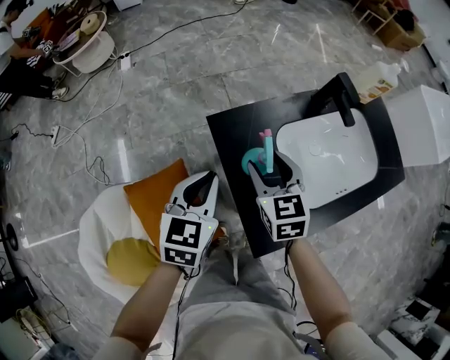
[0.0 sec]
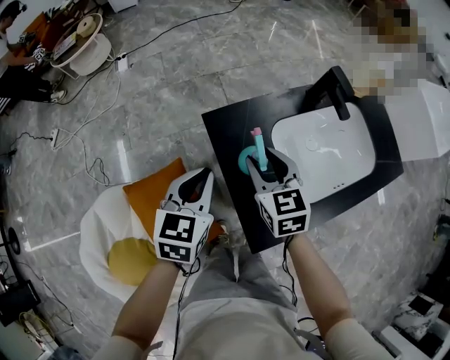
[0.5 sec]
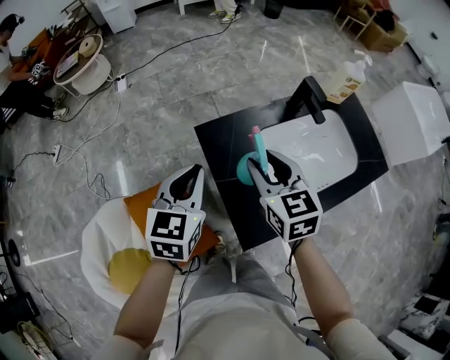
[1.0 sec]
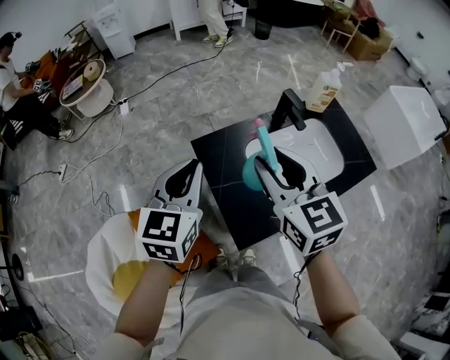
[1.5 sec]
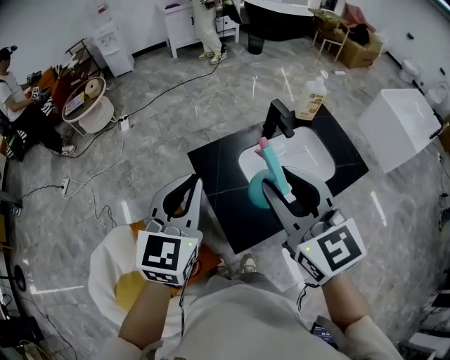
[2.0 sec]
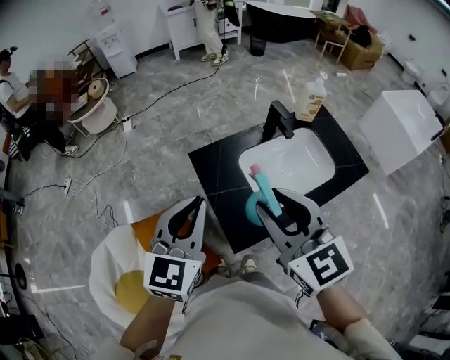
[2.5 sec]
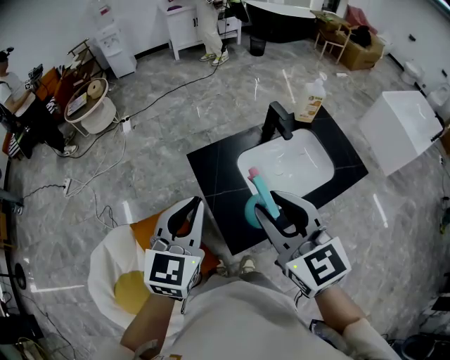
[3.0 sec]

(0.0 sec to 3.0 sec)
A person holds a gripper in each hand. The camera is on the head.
0.0 sec - 1.5 sec: The two grippers go roughly 20 cm upward. The right gripper closes.
1.5 sec - 3.0 sec: Both grippers travel together backward, approximately 10 cm.

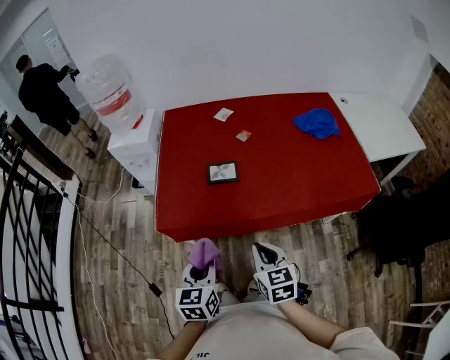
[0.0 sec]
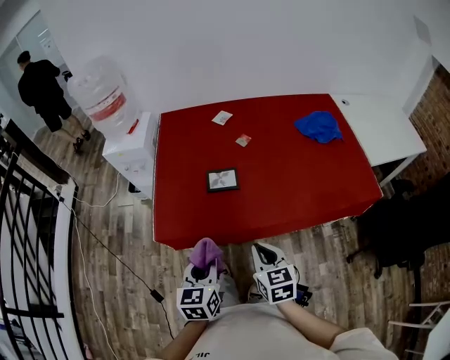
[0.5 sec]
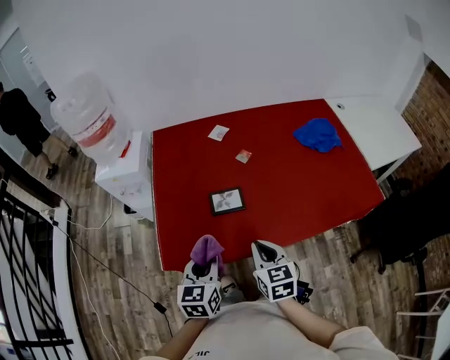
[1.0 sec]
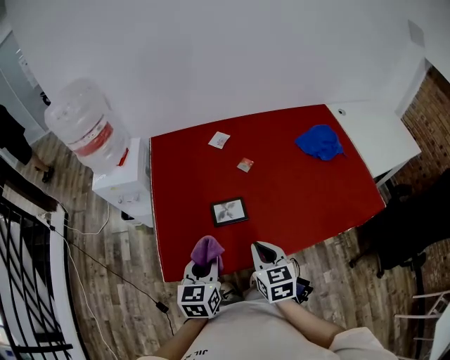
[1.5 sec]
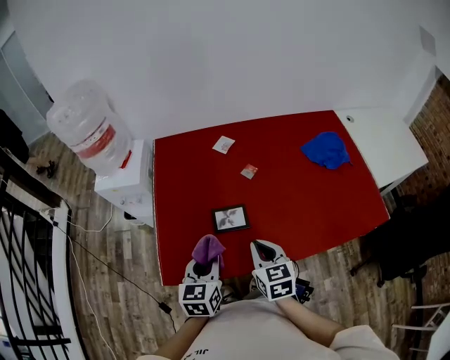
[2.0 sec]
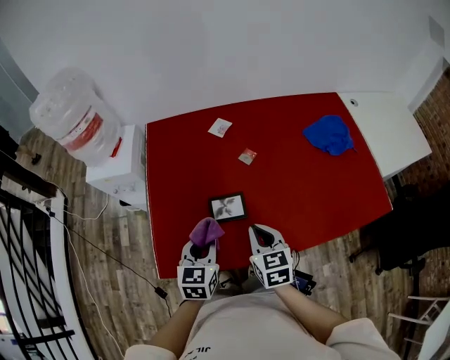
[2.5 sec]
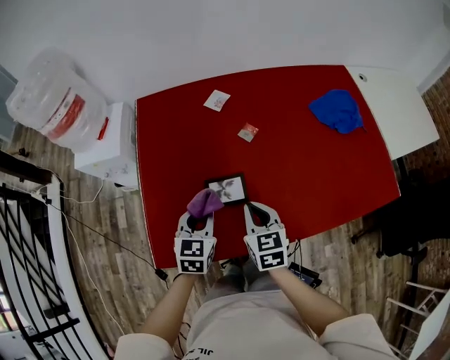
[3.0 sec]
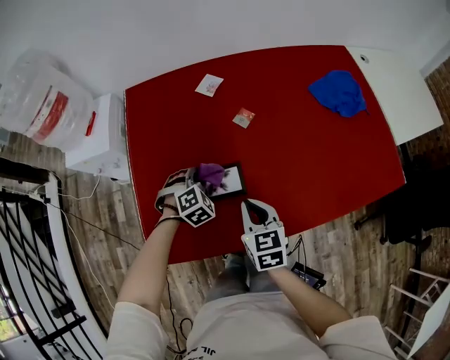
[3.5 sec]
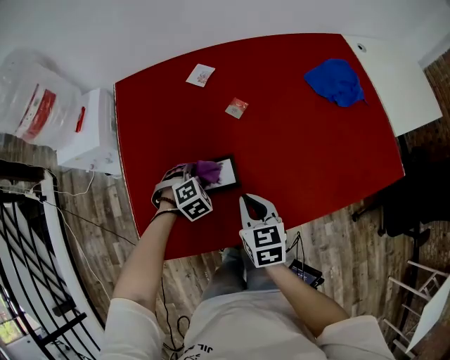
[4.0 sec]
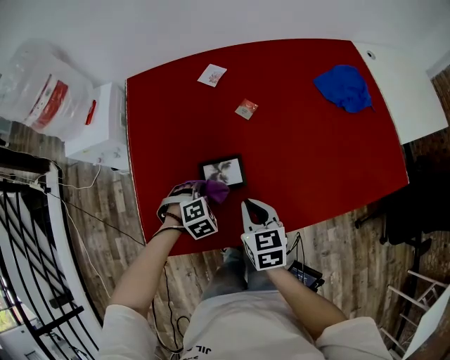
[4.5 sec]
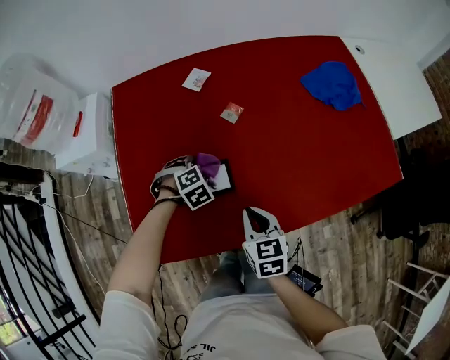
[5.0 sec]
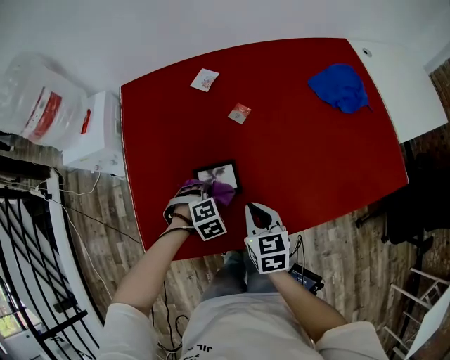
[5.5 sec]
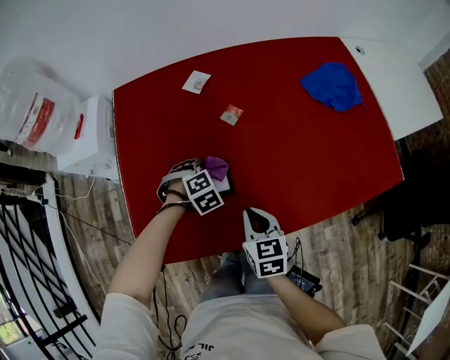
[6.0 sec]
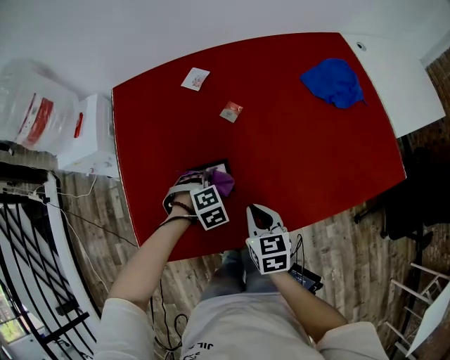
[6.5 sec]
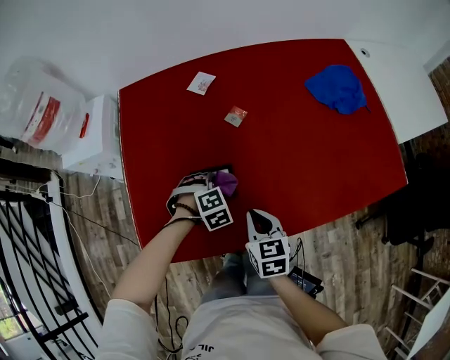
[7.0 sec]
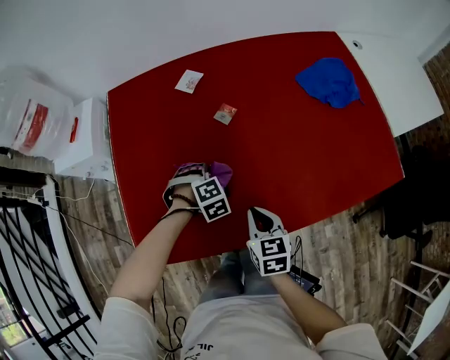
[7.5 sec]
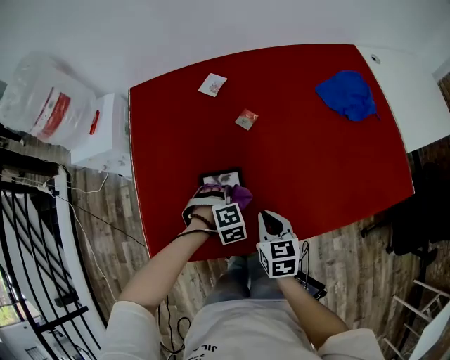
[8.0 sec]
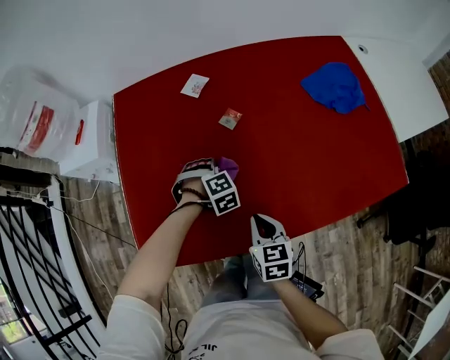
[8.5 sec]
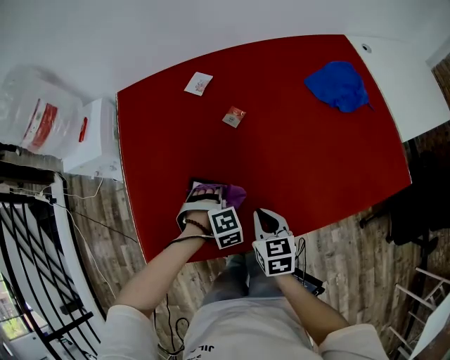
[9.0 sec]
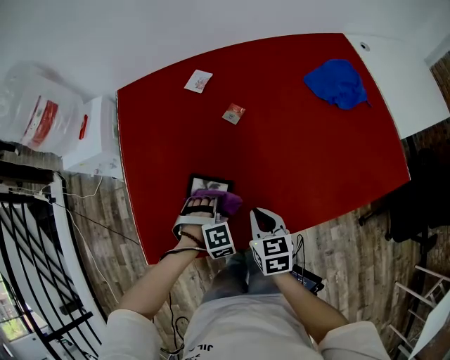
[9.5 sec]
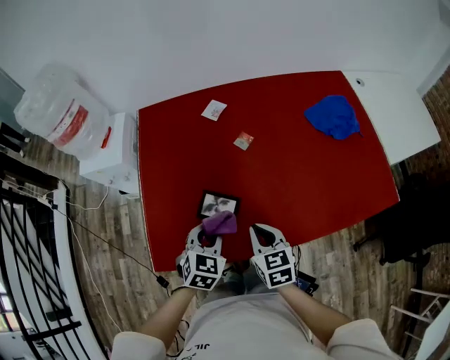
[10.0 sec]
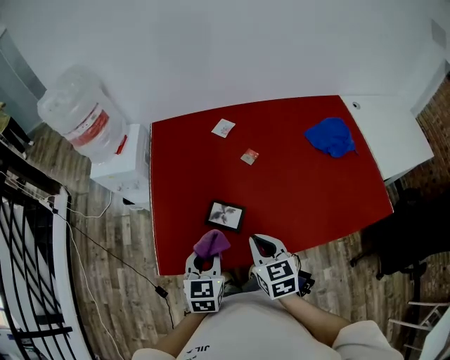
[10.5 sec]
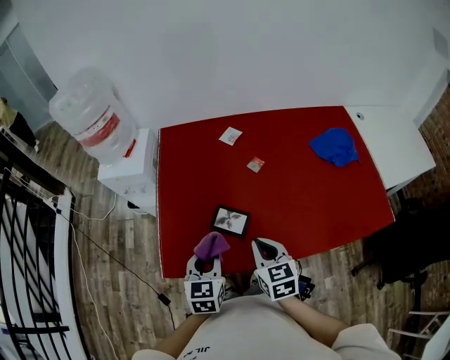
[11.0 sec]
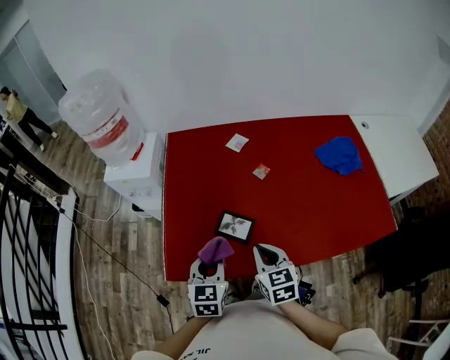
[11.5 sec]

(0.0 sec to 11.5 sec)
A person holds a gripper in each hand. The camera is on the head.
0.0 sec - 2.0 sec: Both grippers travel together forward, about 25 cm.
2.0 sec - 4.0 sec: The left gripper travels downward and forward by about 30 cm, and rotates around the line of its fingers by some 70 degrees, clockwise from behind. The right gripper shifts some 15 cm downward and forward.
4.0 sec - 6.0 sec: The left gripper swings forward and backward, some 10 cm each way, with 3 reversals.
7.5 sec - 9.5 sec: The left gripper moves forward and backward over roughly 10 cm, changing direction 2 times.
9.5 sec - 11.5 sec: The right gripper heads upward and to the left, covering roughly 15 cm. The left gripper heads upward, to the left and backward, covering approximately 25 cm, and rotates around the line of its fingers by roughly 80 degrees, counterclockwise from behind.

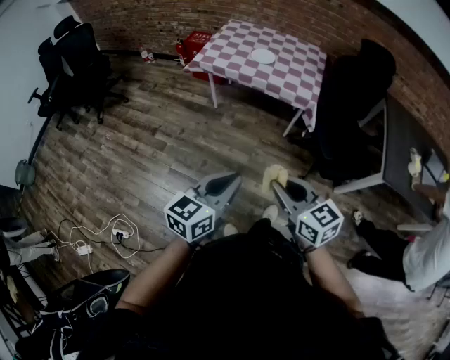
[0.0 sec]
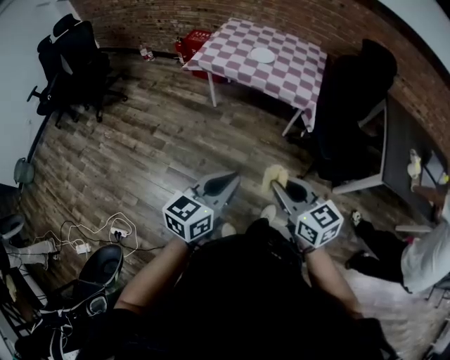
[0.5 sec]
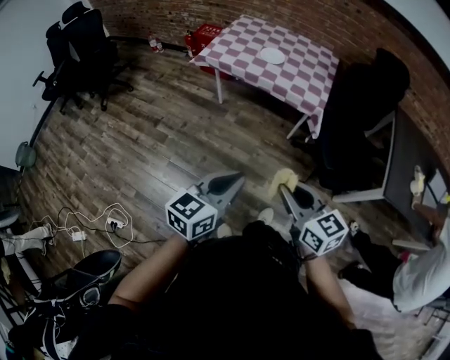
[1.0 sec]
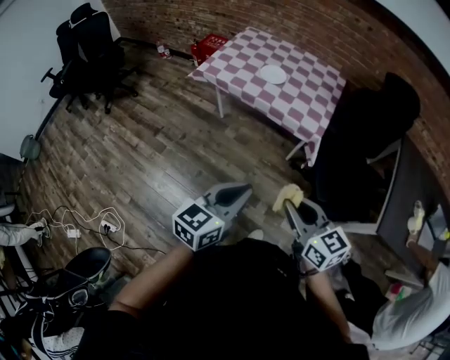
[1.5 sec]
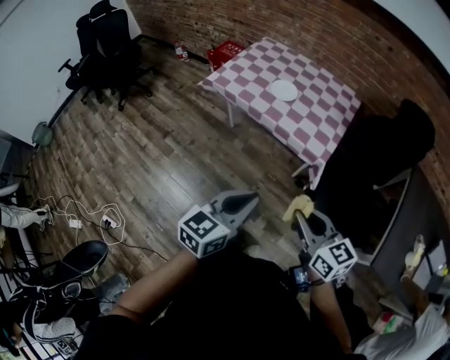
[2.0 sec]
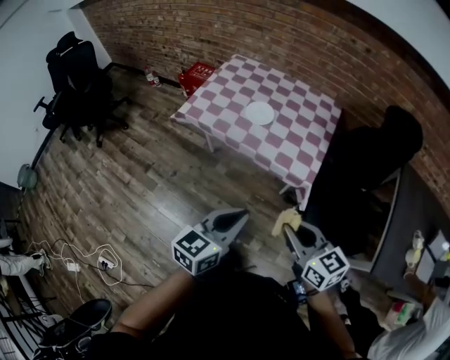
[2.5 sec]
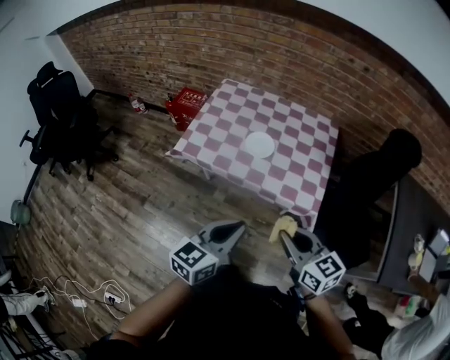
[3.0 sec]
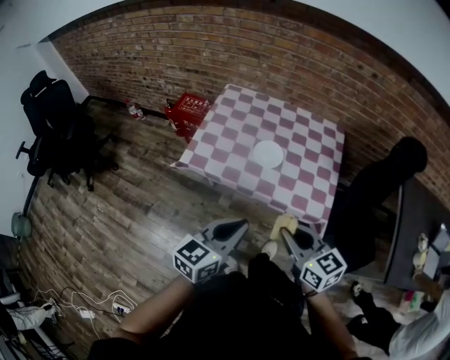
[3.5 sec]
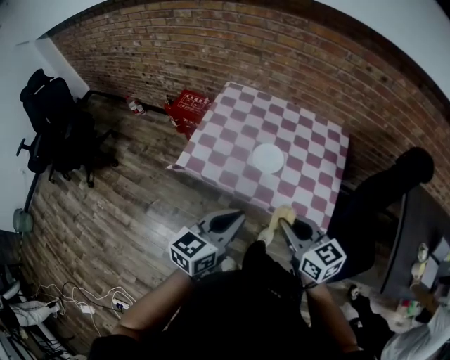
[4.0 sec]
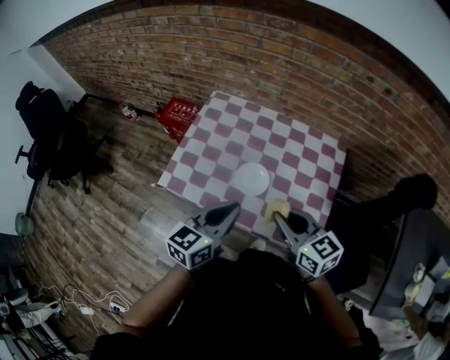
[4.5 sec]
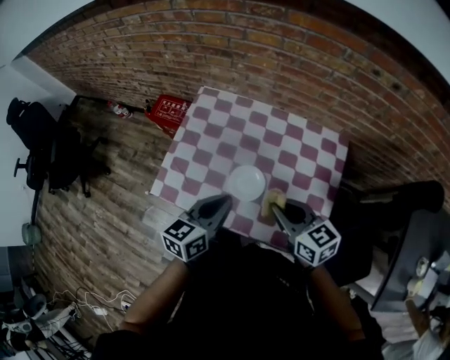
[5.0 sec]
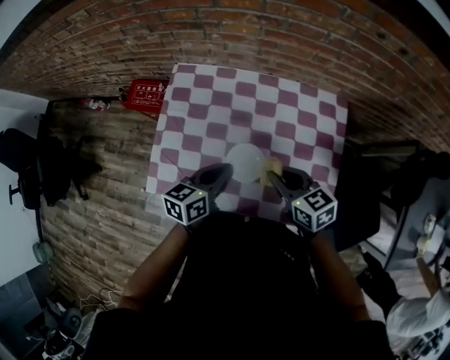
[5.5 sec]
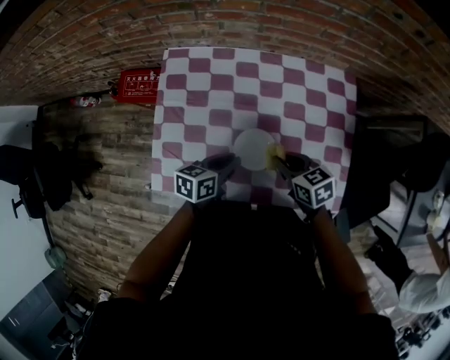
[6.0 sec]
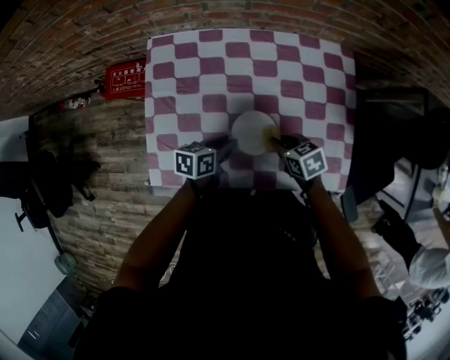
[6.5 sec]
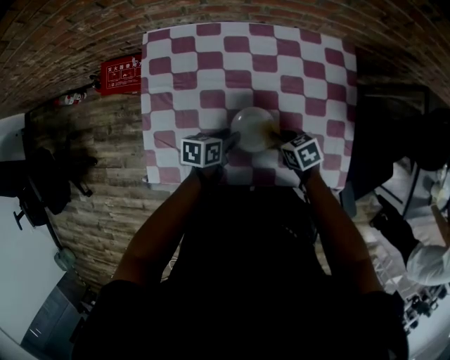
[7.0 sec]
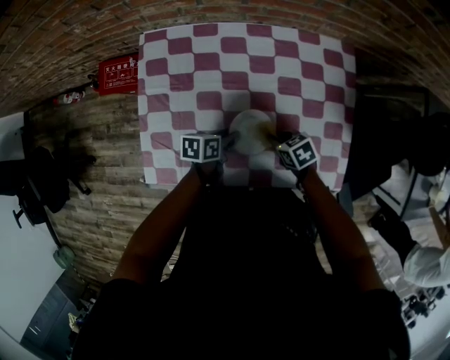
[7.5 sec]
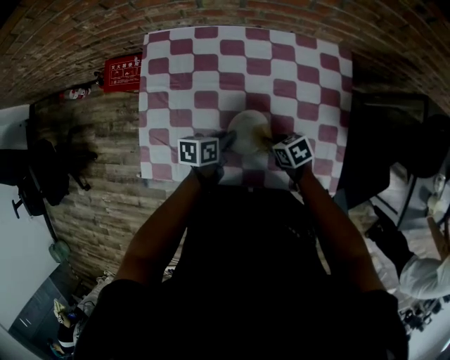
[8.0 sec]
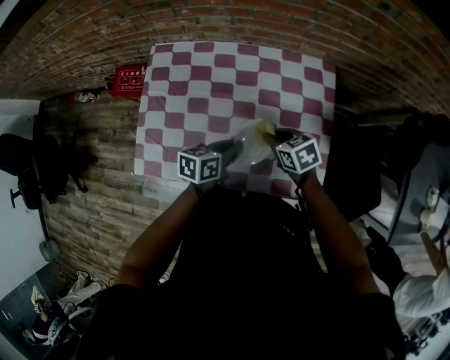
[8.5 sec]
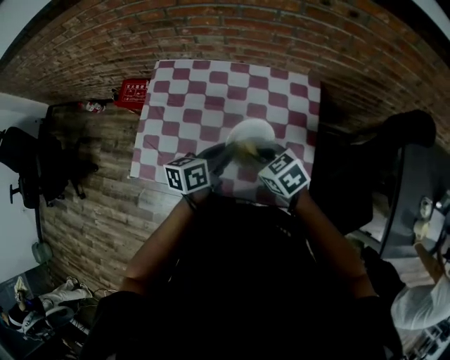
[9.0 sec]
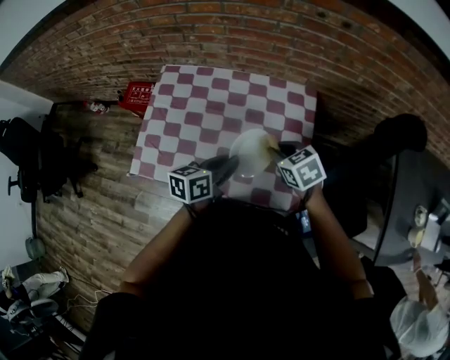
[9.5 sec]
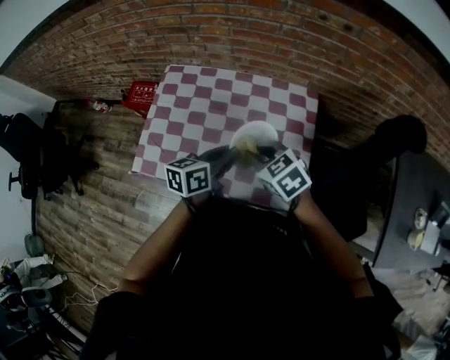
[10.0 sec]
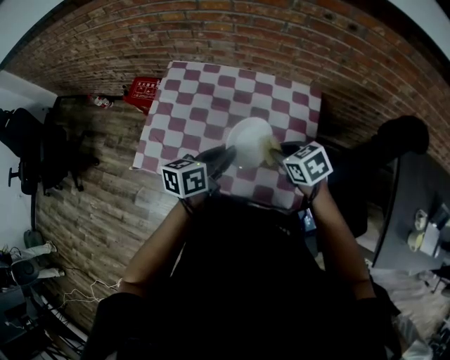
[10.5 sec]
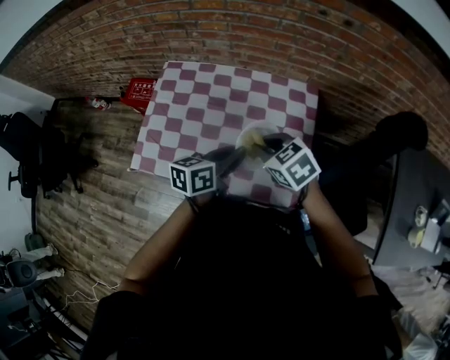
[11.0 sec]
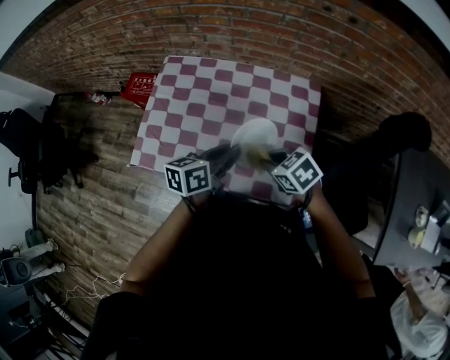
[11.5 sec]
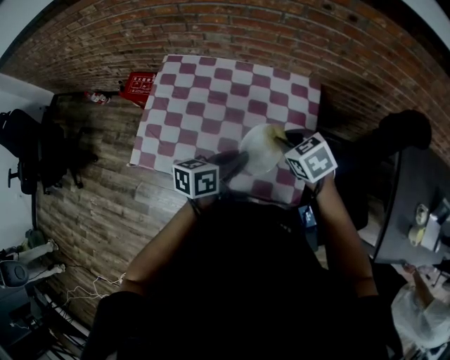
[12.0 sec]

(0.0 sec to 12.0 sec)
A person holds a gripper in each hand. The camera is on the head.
0.0 sec - 2.0 sec: Both grippers travel together forward and to the right, about 25 cm.
2.0 sec - 4.0 sec: The left gripper is displaced forward by about 35 cm; the right gripper moves forward and to the left, approximately 35 cm.
4.0 sec - 6.0 sec: The two grippers go roughly 35 cm forward and downward. The right gripper rotates approximately 30 degrees. Meanwhile the left gripper turns by some 40 degrees.
6.0 sec - 8.0 sec: The right gripper shifts about 15 cm downward, while the left gripper heads downward, covering roughly 10 cm.
8.0 sec - 10.0 sec: Both grippers travel together upward, approximately 25 cm. The left gripper swivels some 30 degrees, while the right gripper changes its angle by about 40 degrees.
10.0 sec - 12.0 sec: The right gripper moves left and right over about 10 cm, changing direction 2 times.
